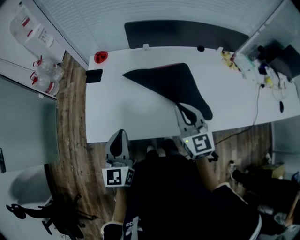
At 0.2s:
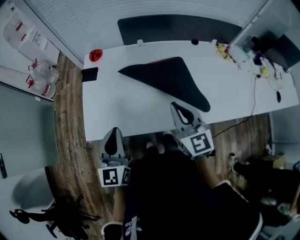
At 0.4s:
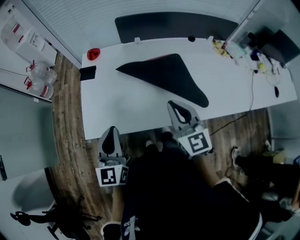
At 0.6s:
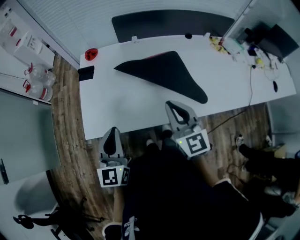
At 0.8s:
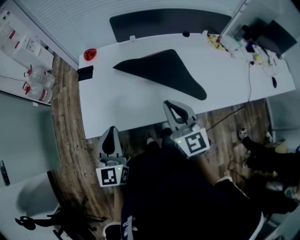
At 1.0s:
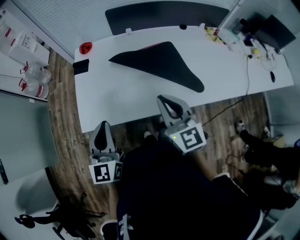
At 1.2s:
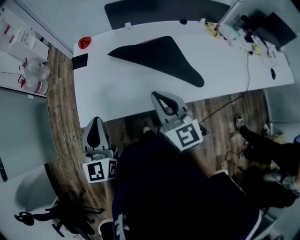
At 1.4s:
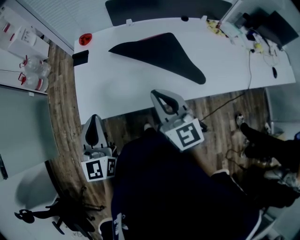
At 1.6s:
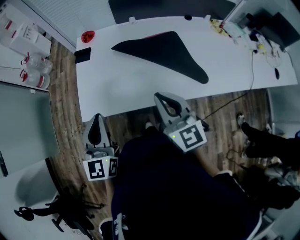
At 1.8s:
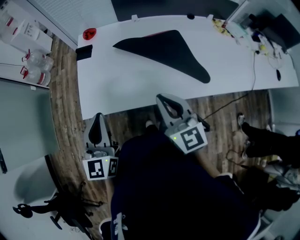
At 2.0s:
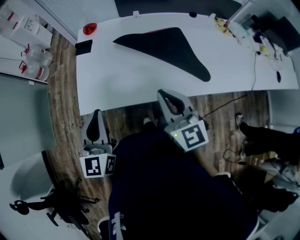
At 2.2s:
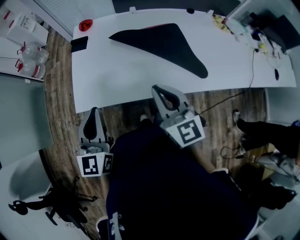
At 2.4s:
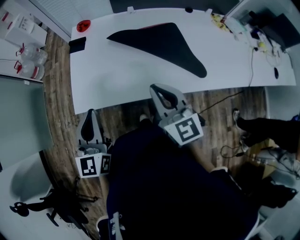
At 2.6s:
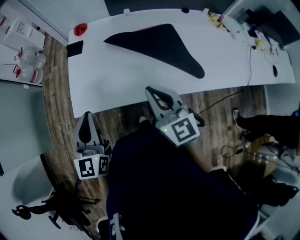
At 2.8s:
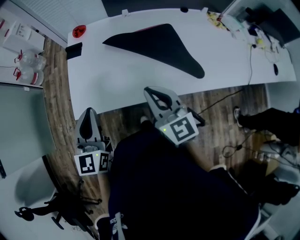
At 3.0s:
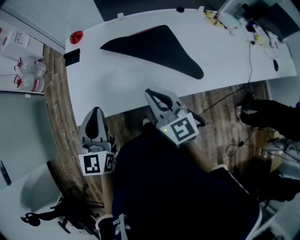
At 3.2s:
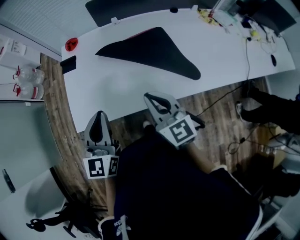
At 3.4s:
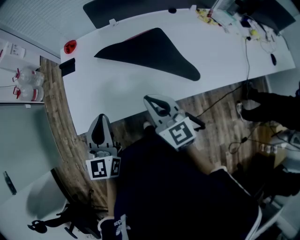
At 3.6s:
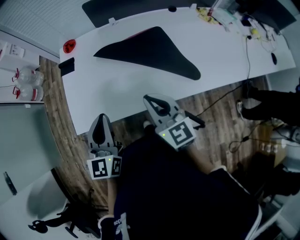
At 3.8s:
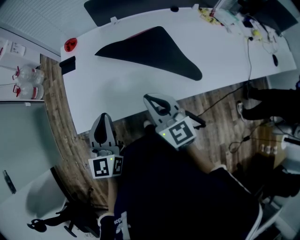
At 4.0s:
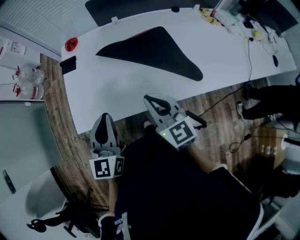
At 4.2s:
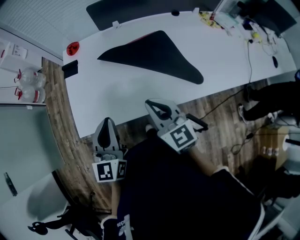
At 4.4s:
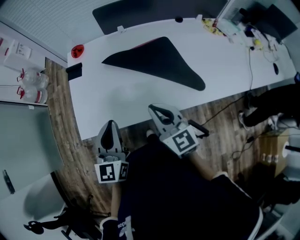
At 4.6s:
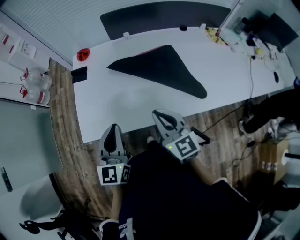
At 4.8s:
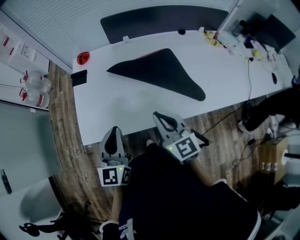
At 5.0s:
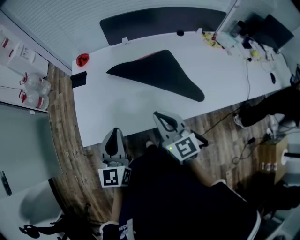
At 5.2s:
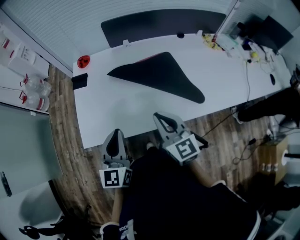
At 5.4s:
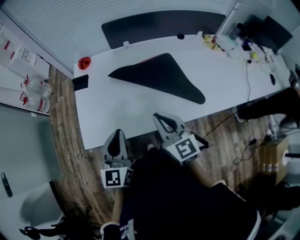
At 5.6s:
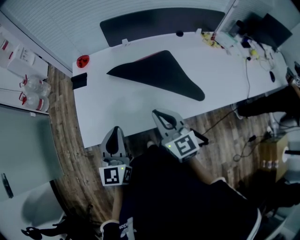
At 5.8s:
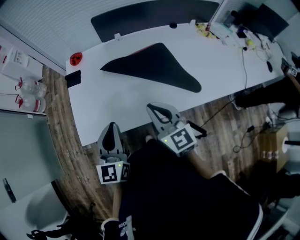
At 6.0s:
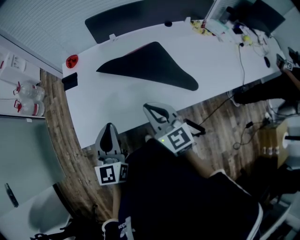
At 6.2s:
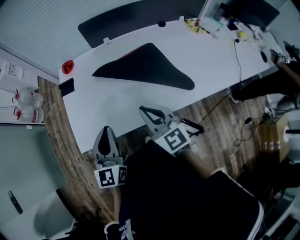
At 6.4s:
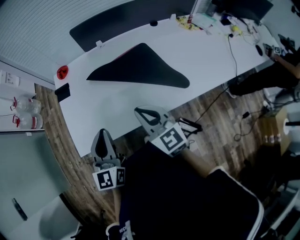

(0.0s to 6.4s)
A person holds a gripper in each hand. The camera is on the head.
0.0s - 1.6s: The left gripper goes about 10 cm to the left and backward. The right gripper heads backward and to the left, covering some 15 cm.
1.6s - 3.2s: The right gripper moves downward, some 5 cm. Meanwhile the left gripper goes roughly 5 cm to the right.
3.2s - 4.8s: The grippers make only small movements.
4.8s - 6.4s: The two grippers keep their place.

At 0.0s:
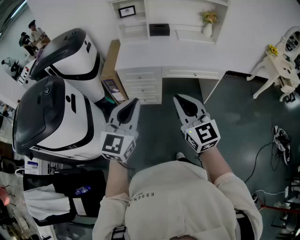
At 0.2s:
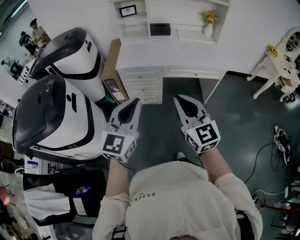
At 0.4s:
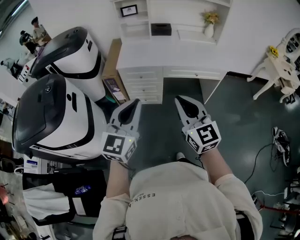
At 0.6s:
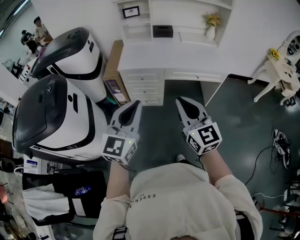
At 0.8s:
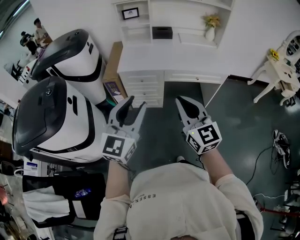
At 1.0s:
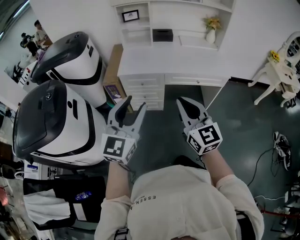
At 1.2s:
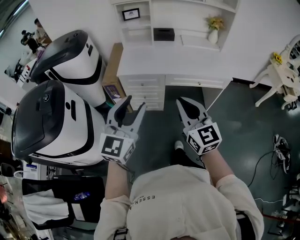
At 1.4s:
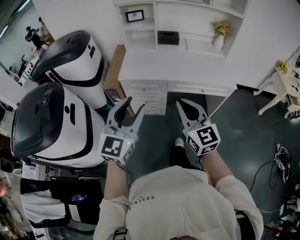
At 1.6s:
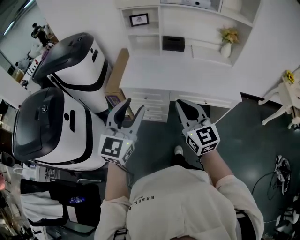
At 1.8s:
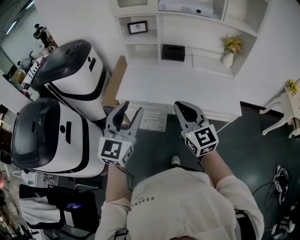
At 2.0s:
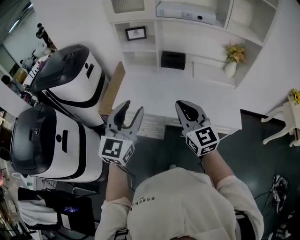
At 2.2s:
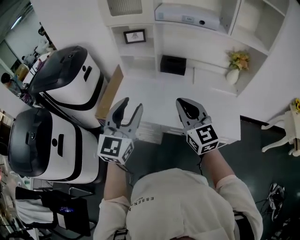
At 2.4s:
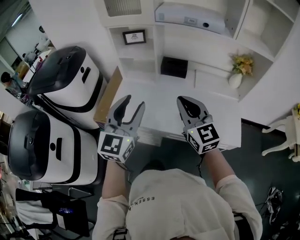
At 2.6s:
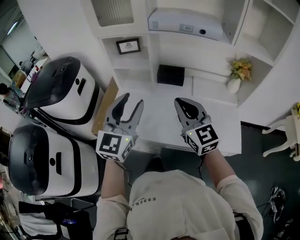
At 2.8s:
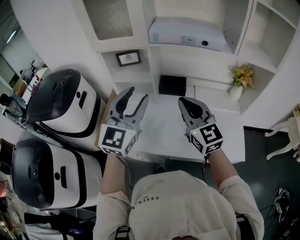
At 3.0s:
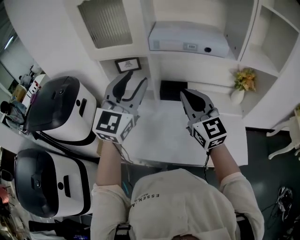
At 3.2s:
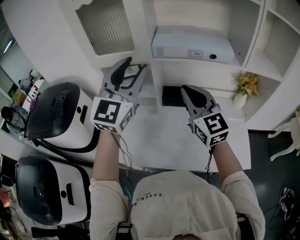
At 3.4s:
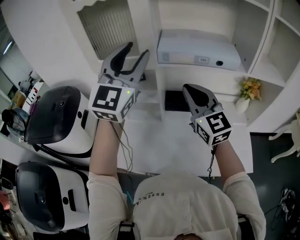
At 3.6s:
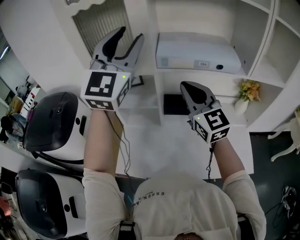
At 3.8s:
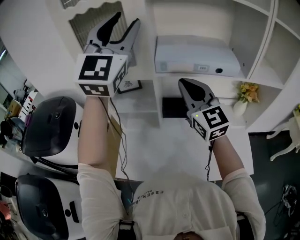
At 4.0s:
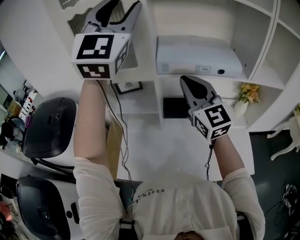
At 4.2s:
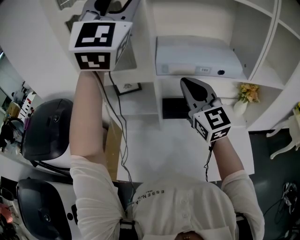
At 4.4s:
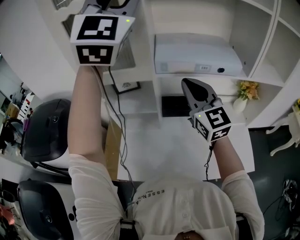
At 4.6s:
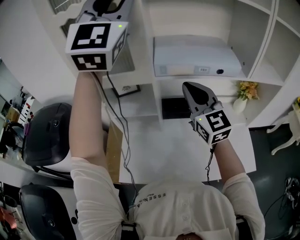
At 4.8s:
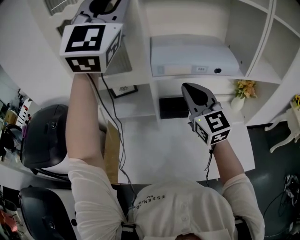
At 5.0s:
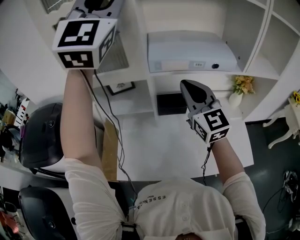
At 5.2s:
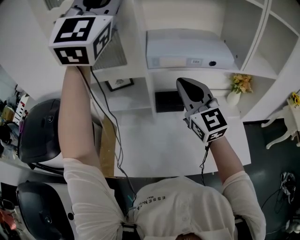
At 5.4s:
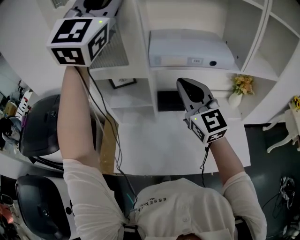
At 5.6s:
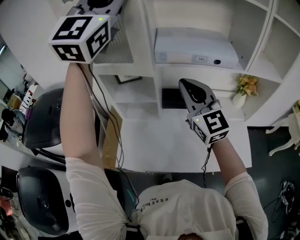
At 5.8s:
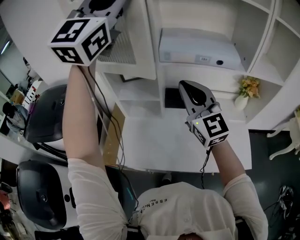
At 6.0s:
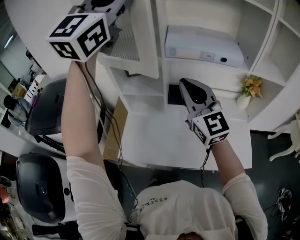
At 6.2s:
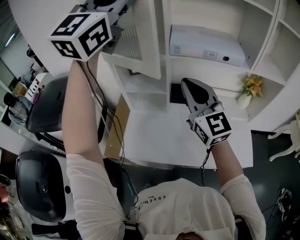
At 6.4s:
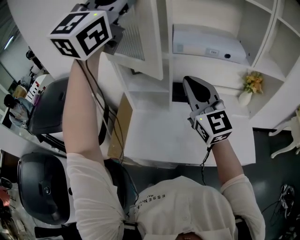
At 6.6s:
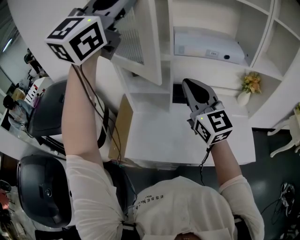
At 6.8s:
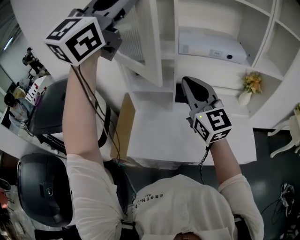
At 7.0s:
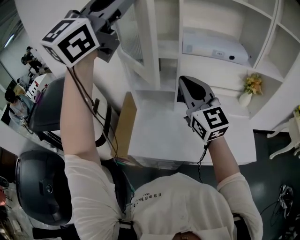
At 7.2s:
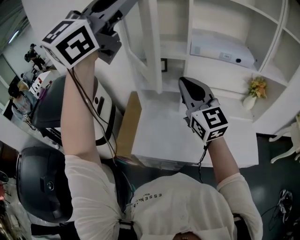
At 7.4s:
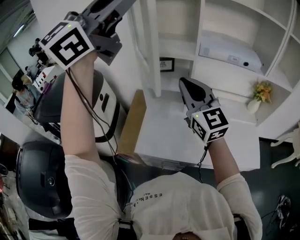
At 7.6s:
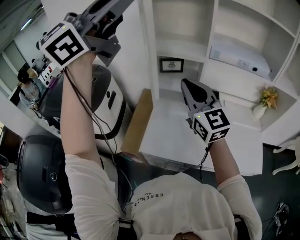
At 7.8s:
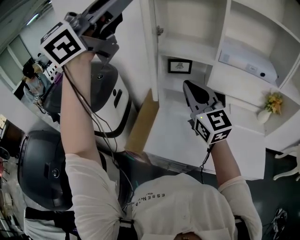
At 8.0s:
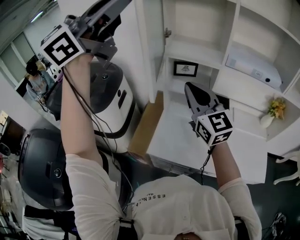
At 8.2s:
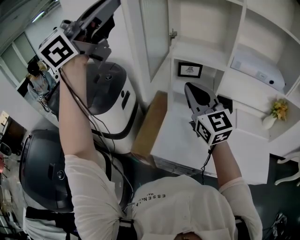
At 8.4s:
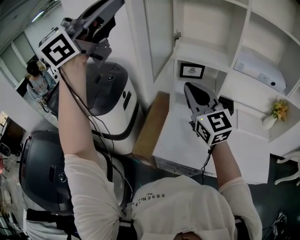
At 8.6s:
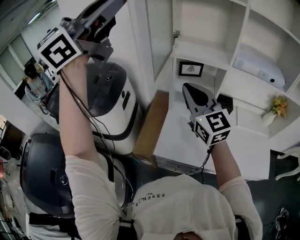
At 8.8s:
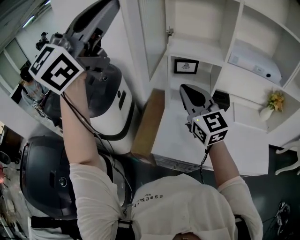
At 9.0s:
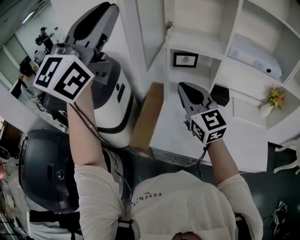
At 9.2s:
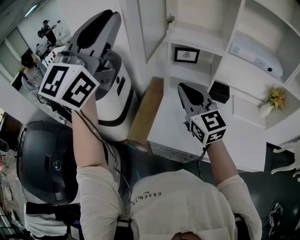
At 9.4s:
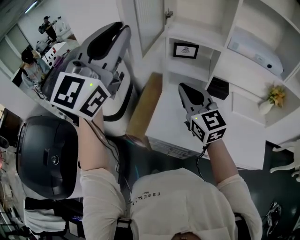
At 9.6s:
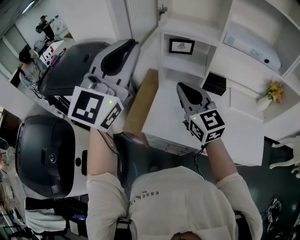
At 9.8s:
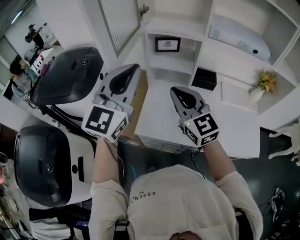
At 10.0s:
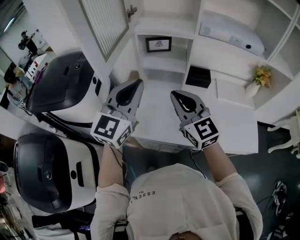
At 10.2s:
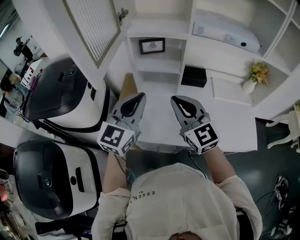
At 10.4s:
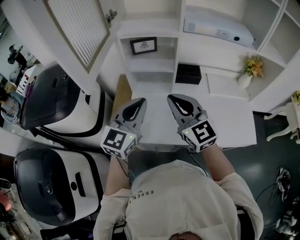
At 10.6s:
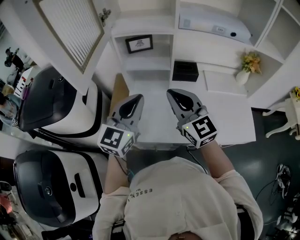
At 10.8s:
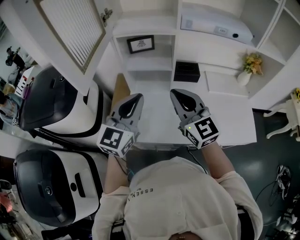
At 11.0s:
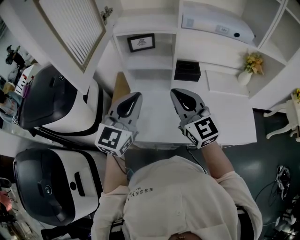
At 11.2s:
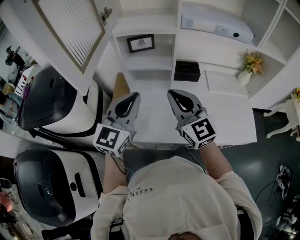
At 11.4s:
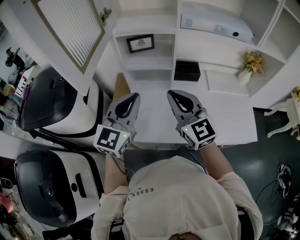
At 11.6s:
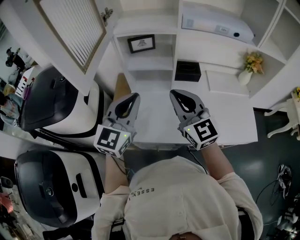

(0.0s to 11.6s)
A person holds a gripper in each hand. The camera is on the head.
0.0s - 1.4s: Both grippers travel together forward, some 10 cm. The left gripper opens.
1.4s - 2.8s: The pair of grippers is taken forward, some 50 cm.
2.8s - 4.4s: The right gripper shifts about 20 cm forward and upward. The left gripper travels upward and forward by approximately 40 cm, and turns by roughly 30 degrees.
4.4s - 5.8s: The two grippers go approximately 5 cm backward.
5.8s - 7.2s: The left gripper is displaced backward and to the left by roughly 15 cm, and turns by some 20 degrees; the right gripper shifts roughly 15 cm to the left and backward.
7.2s - 8.8s: The two grippers go roughly 15 cm to the left.
8.8s - 10.2s: The left gripper moves downward and to the right, roughly 40 cm, and turns by some 30 degrees; the right gripper travels to the right, downward and backward by about 15 cm.
10.2s - 11.6s: The grippers make only small movements.

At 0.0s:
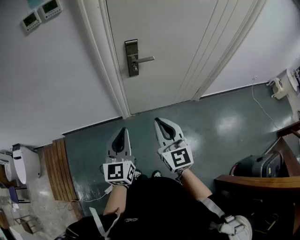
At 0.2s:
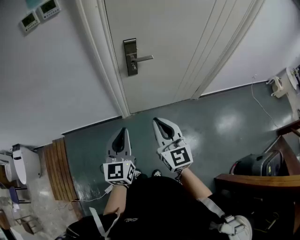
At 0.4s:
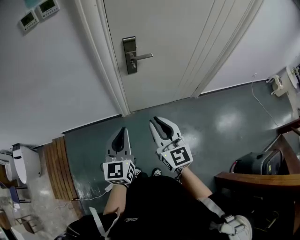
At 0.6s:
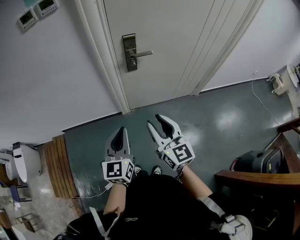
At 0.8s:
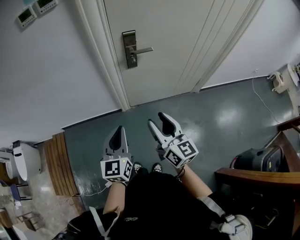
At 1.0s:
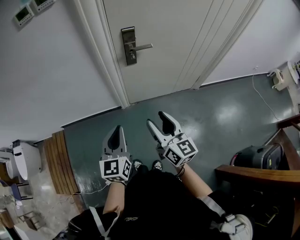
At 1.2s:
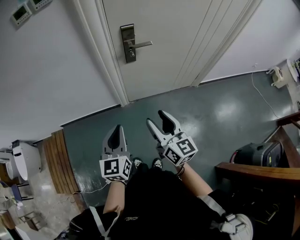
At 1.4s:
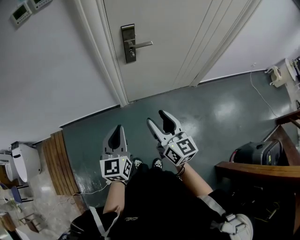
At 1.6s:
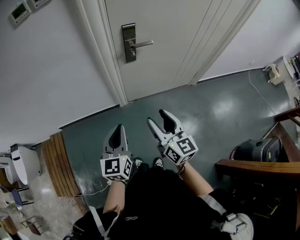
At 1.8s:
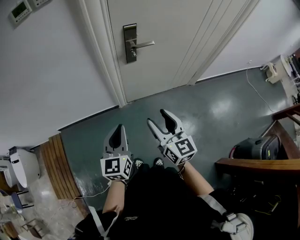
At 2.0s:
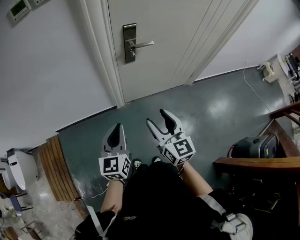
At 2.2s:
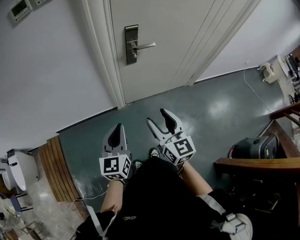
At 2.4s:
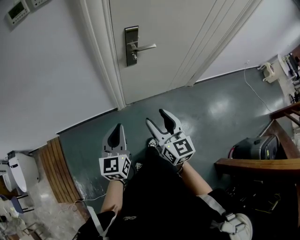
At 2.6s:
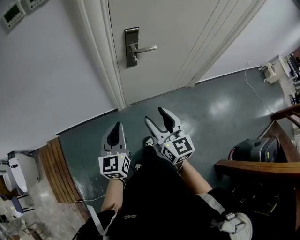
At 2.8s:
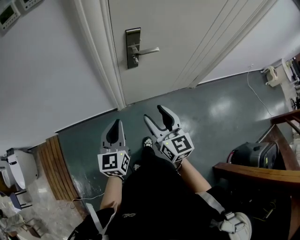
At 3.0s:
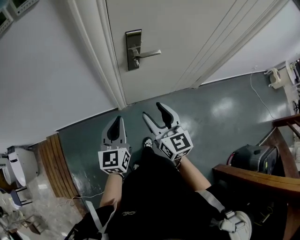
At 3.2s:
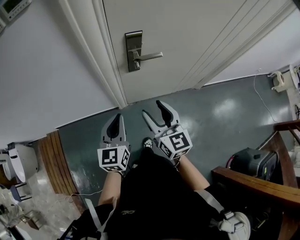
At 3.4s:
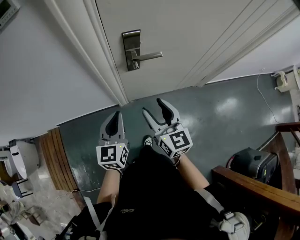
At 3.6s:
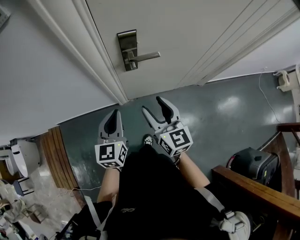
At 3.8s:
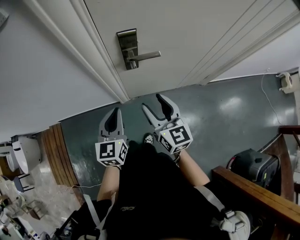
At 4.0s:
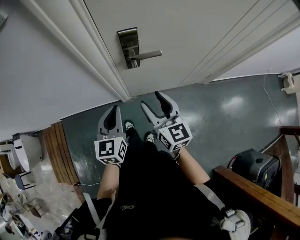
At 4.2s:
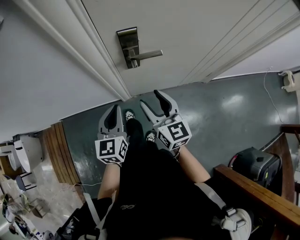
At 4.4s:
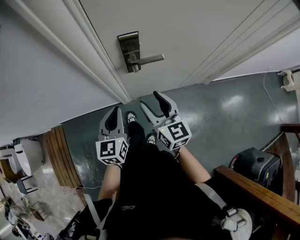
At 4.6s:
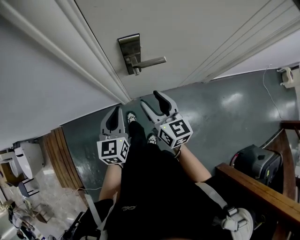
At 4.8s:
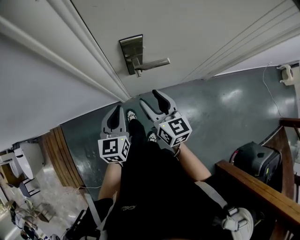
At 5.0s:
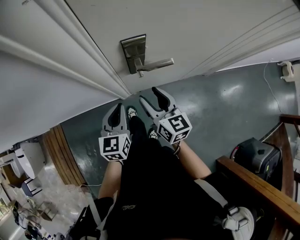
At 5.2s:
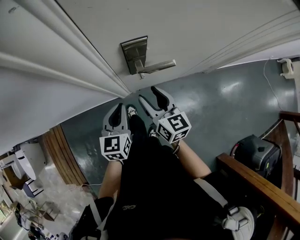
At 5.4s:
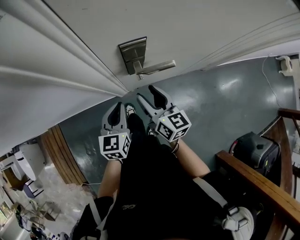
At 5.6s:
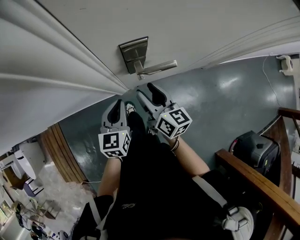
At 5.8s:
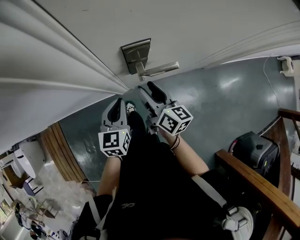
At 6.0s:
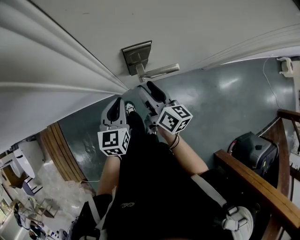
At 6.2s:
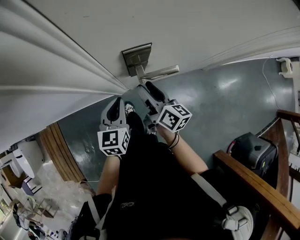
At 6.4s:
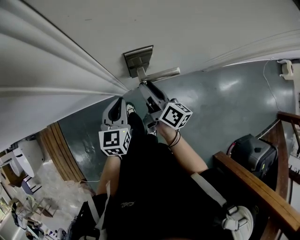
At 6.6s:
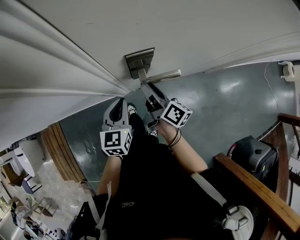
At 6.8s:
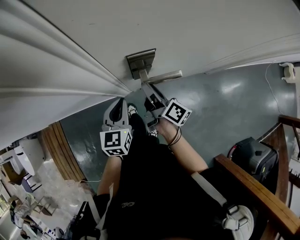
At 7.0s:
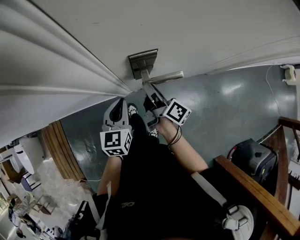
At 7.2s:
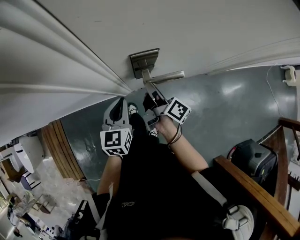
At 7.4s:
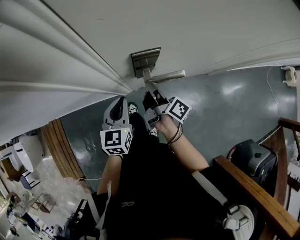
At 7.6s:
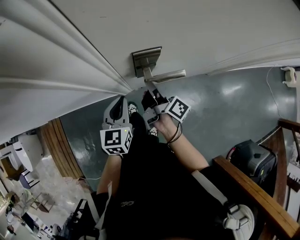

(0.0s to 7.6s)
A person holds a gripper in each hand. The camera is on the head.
0.0s - 1.6s: The two grippers go roughly 5 cm downward. The right gripper rotates approximately 20 degrees, and opens its fingers.
1.6s - 3.0s: The two grippers go roughly 15 cm forward.
3.0s - 4.6s: Both grippers travel together forward, some 15 cm.
4.6s - 6.0s: Both grippers travel together forward and downward, roughly 10 cm. The right gripper swivels some 30 degrees.
6.0s - 7.6s: The right gripper rotates some 40 degrees, and closes its fingers.
